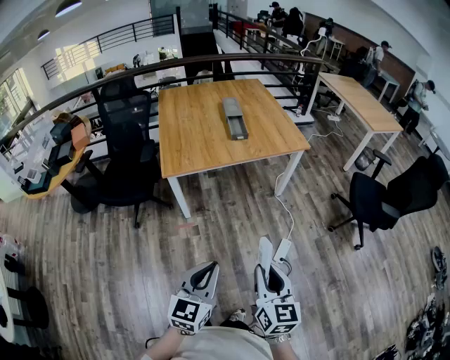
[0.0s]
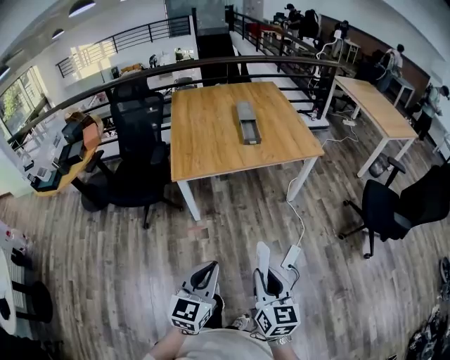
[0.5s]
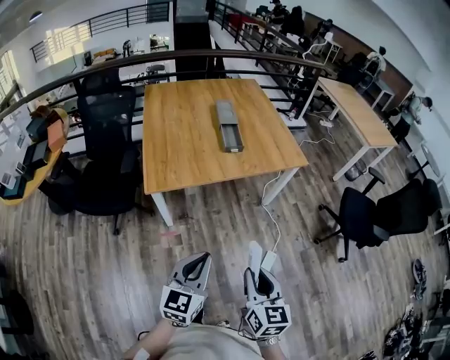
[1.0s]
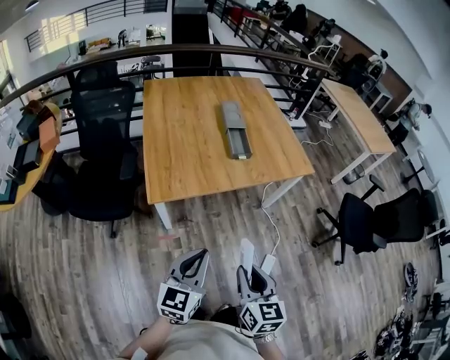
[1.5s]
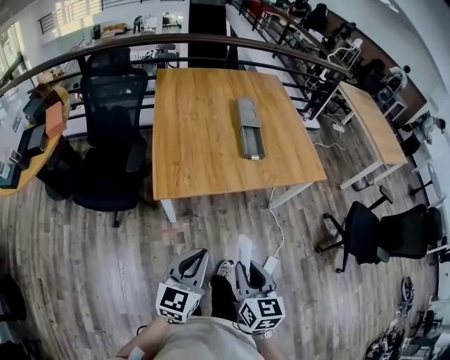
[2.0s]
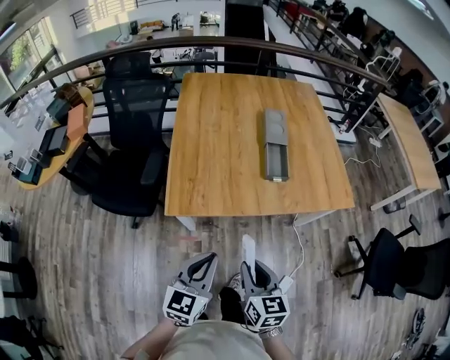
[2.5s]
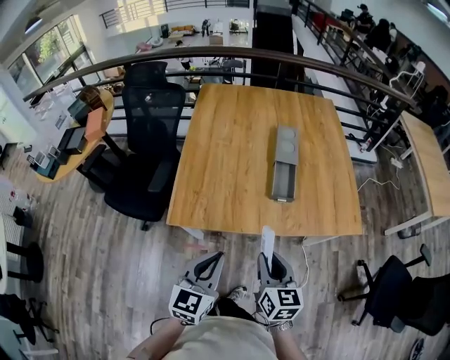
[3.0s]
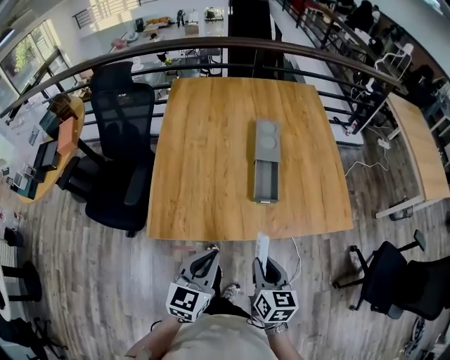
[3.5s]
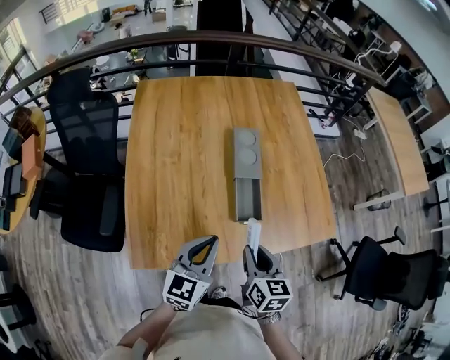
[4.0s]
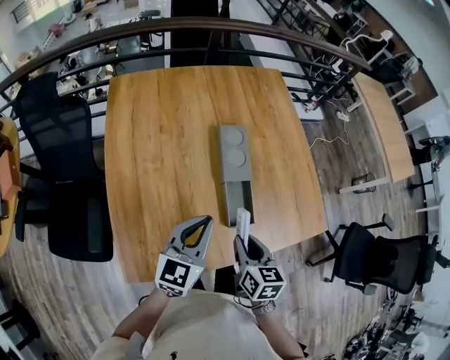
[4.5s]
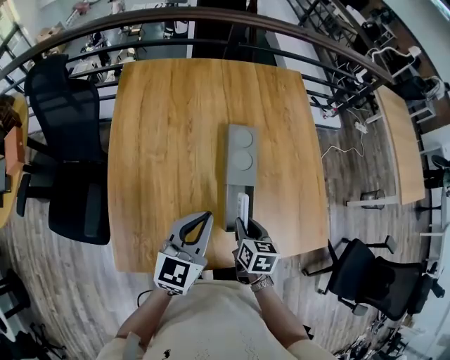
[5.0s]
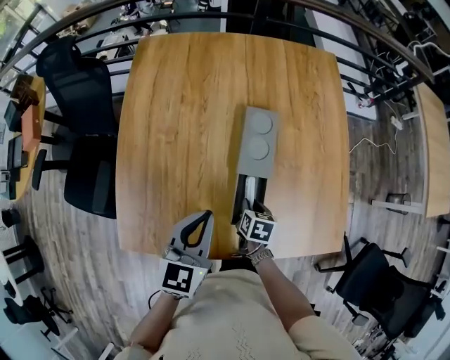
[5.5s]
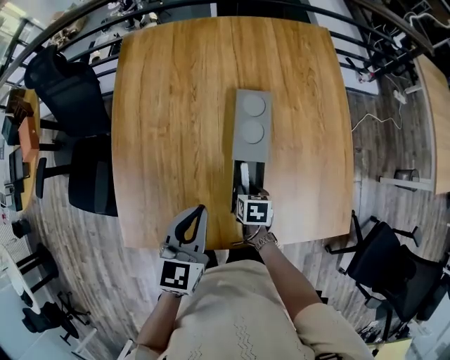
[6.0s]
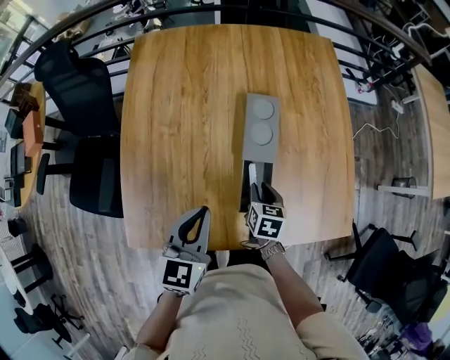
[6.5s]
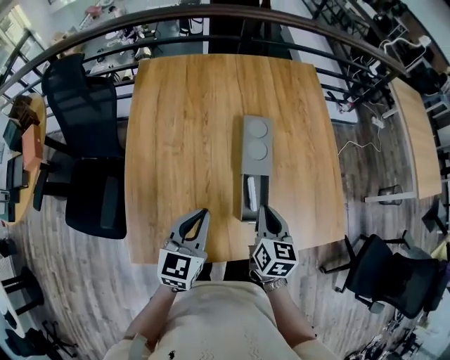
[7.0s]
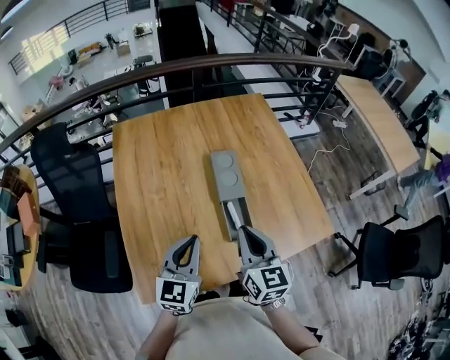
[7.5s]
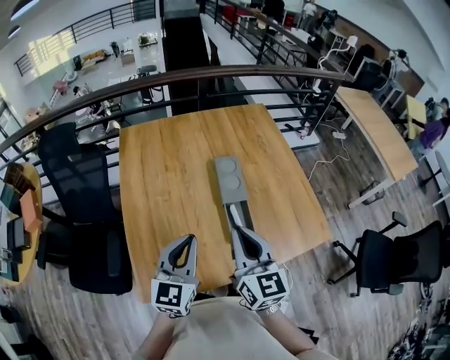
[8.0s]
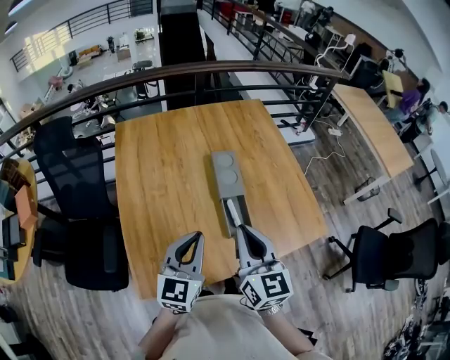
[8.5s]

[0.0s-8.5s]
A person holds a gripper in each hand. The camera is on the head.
0.0s to 2.0s: Both grippers travel together forward and to the left, roughly 40 cm.
2.0s to 4.0s: The pair of grippers is taken forward, roughly 50 cm.
4.0s to 6.5s: The right gripper shifts approximately 30 cm forward and downward. Meanwhile the left gripper travels forward by roughly 15 cm.
6.5s to 8.5s: The right gripper goes approximately 40 cm upward and backward, angles its fingers upward, by some 40 degrees, and closes its fingers, while the left gripper travels upward and backward by approximately 15 cm, and rotates approximately 20 degrees.

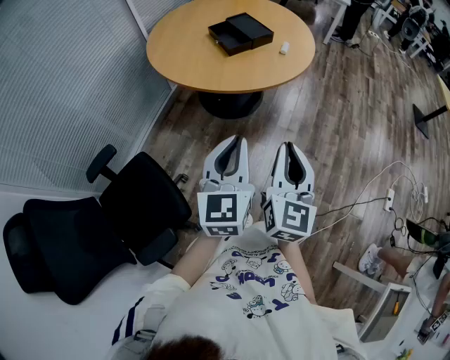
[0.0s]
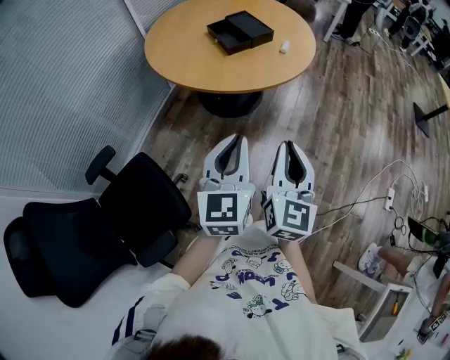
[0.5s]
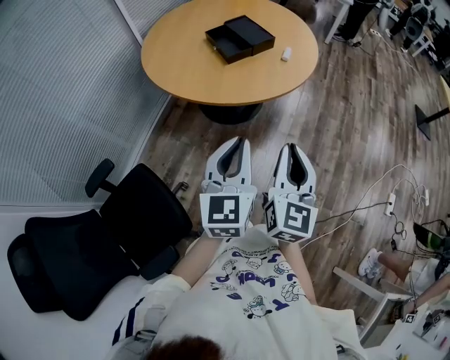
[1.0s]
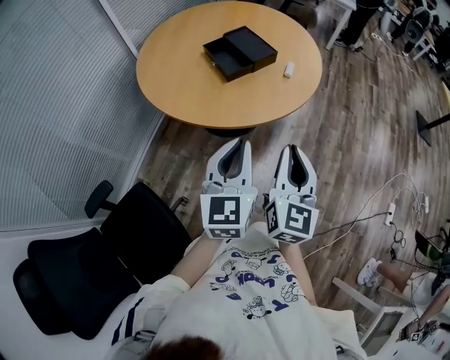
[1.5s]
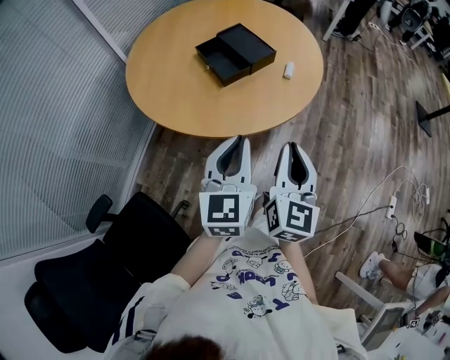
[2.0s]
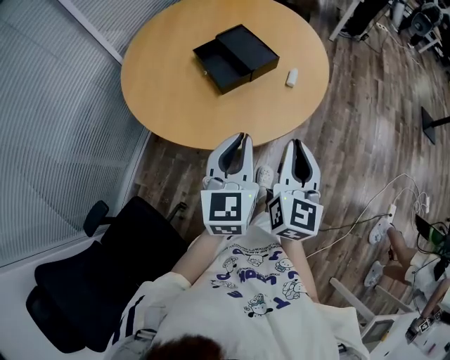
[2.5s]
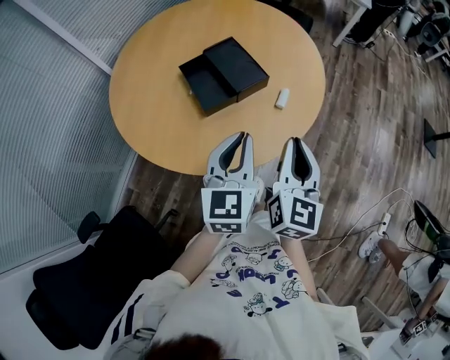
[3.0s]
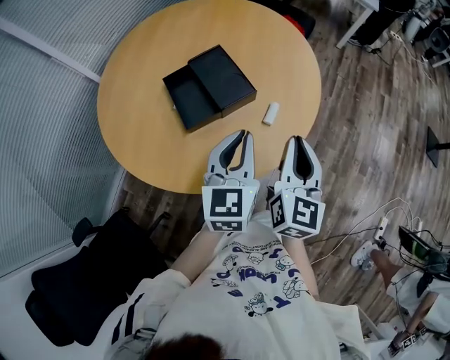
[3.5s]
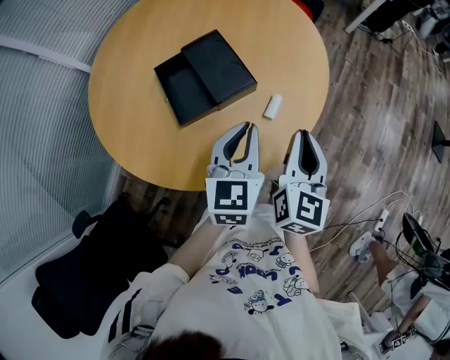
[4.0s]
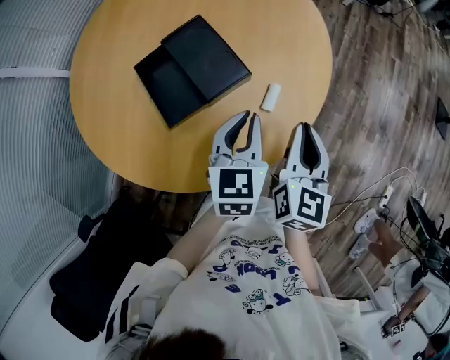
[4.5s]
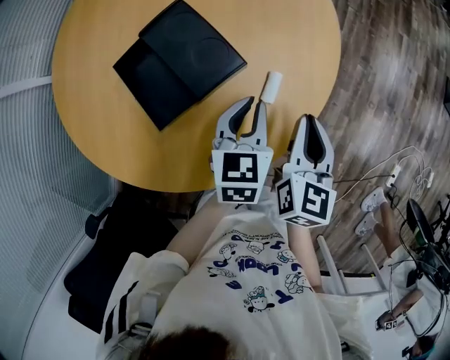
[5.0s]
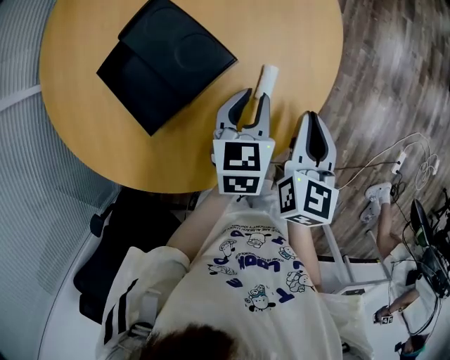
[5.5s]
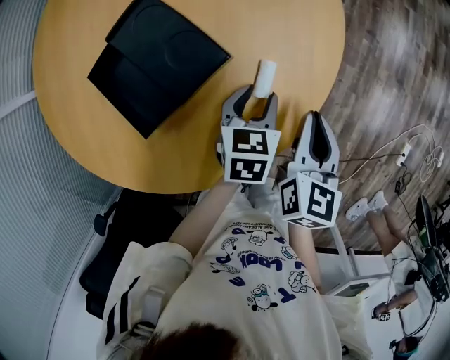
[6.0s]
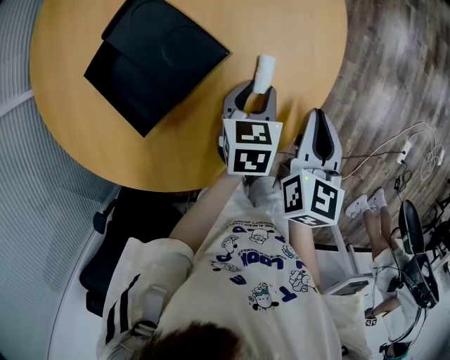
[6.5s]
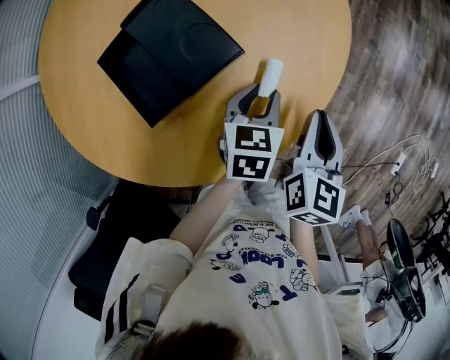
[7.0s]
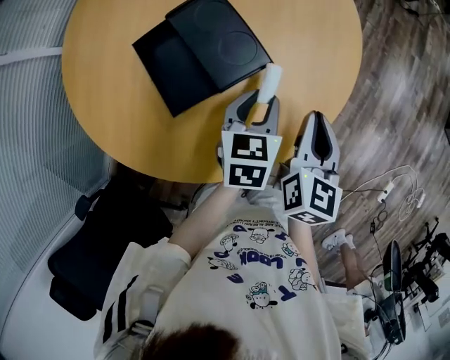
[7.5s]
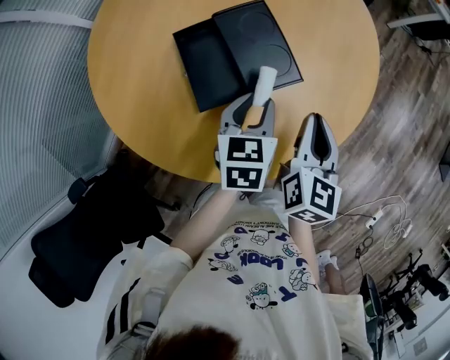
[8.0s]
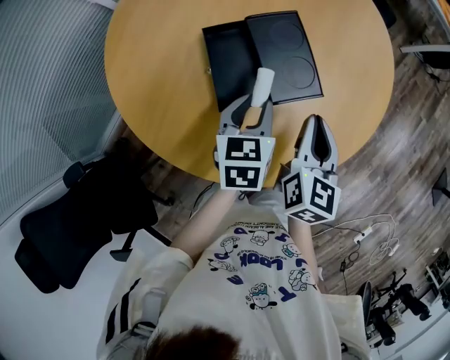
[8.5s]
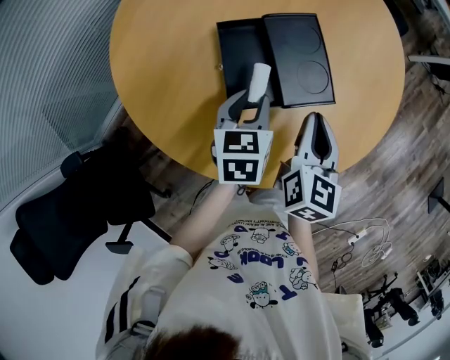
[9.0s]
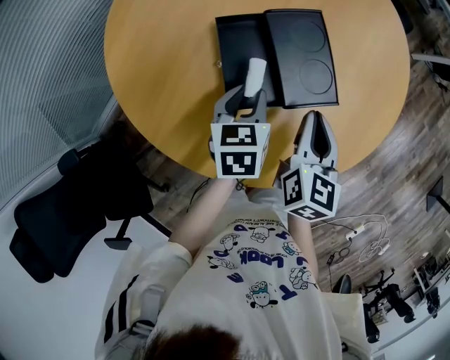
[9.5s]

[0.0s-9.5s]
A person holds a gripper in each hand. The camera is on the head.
0.0s to 2.0s: The grippers both shift forward by approximately 25 cm.
2.0s to 4.0s: The grippers both shift forward by roughly 30 cm.
4.0s to 5.5s: The right gripper heads downward, covering roughly 10 cm, while the left gripper goes roughly 20 cm downward and forward, and turns by approximately 20 degrees.
5.5s to 7.5s: The right gripper goes about 5 cm to the left; the left gripper goes downward and returns, roughly 5 cm each way.
7.5s to 9.5s: Both grippers travel together to the left, about 15 cm. The left gripper swivels about 30 degrees.

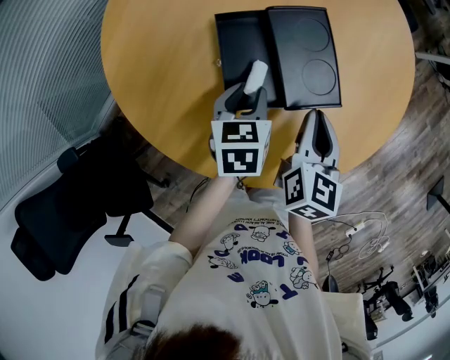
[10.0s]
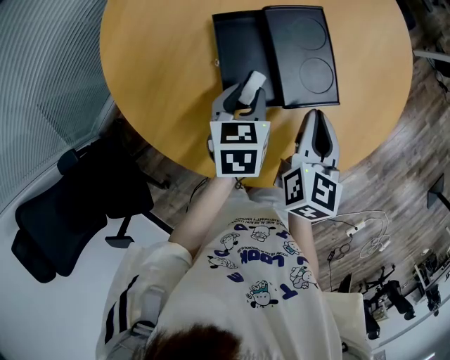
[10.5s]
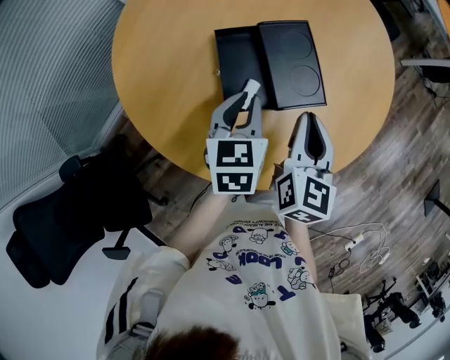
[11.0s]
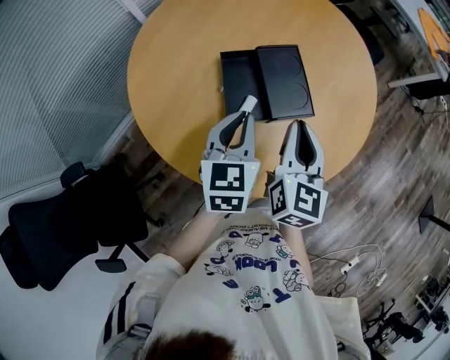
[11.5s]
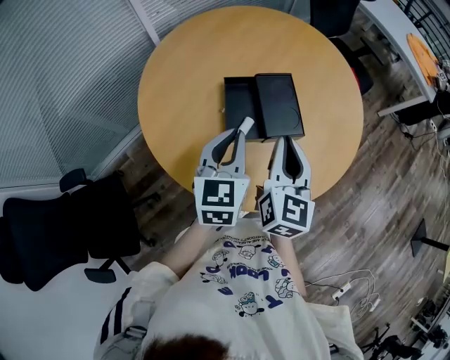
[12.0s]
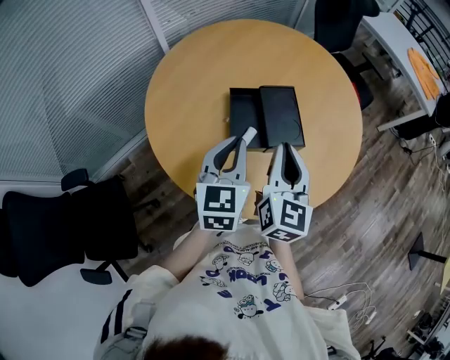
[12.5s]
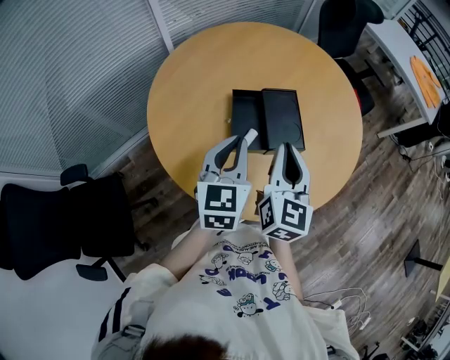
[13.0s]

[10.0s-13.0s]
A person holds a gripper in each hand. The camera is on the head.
10.0s to 11.5s: The two grippers go about 15 cm upward. The left gripper turns by about 20 degrees, and closes up.
11.5s to 13.0s: Both grippers travel together upward, roughly 5 cm.

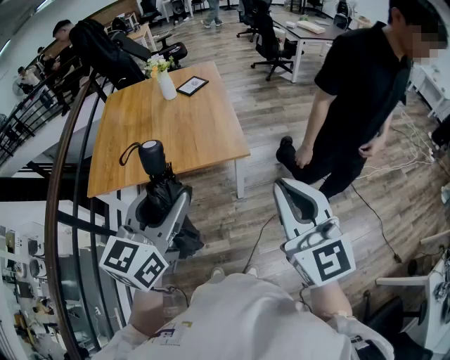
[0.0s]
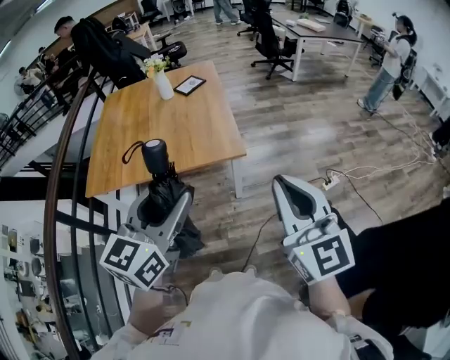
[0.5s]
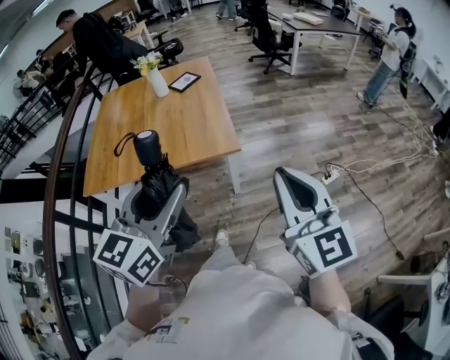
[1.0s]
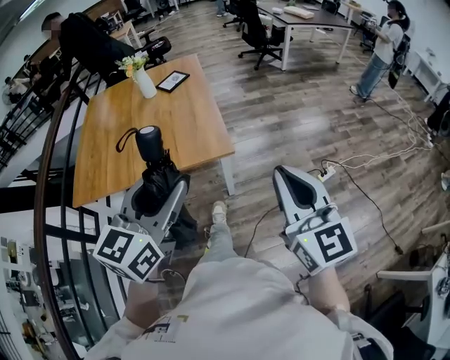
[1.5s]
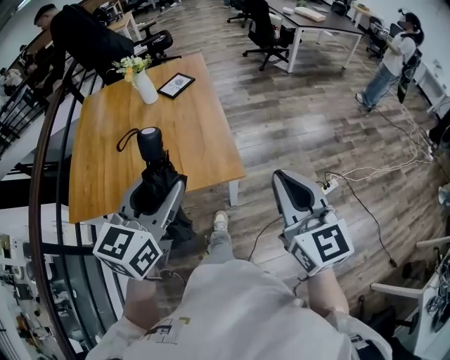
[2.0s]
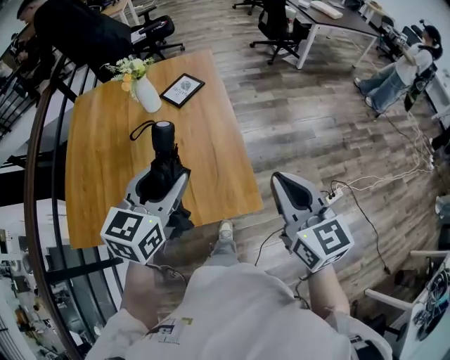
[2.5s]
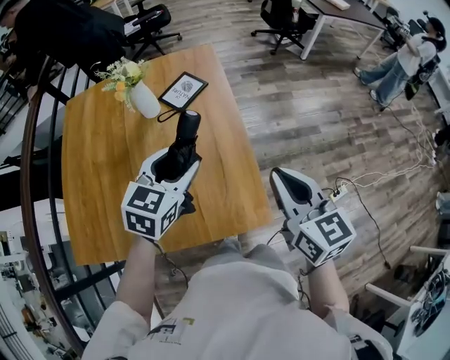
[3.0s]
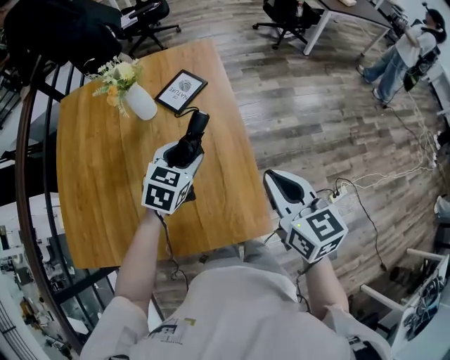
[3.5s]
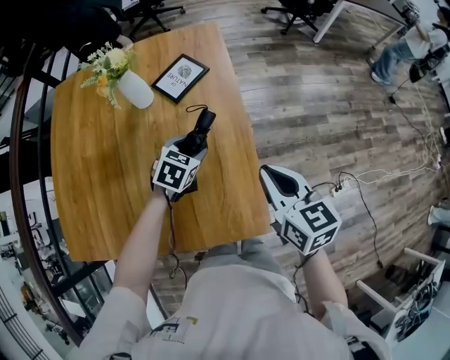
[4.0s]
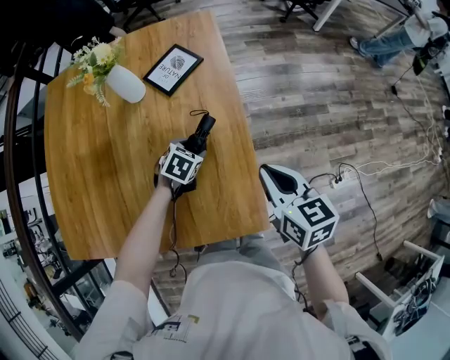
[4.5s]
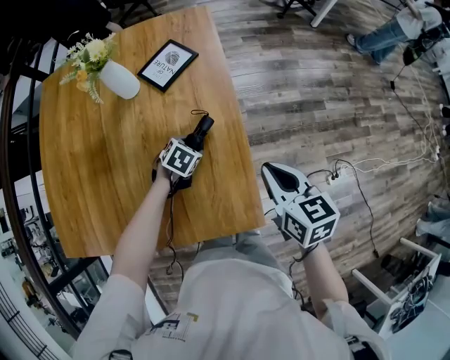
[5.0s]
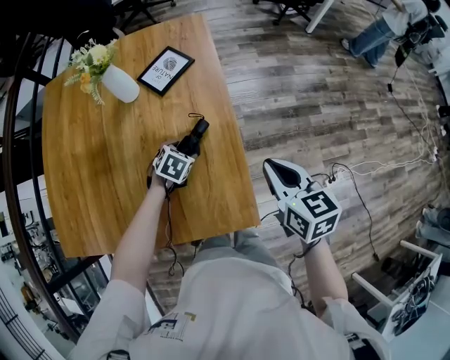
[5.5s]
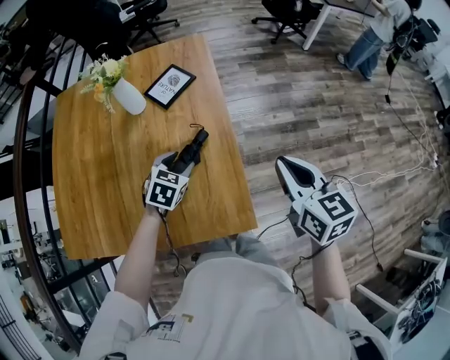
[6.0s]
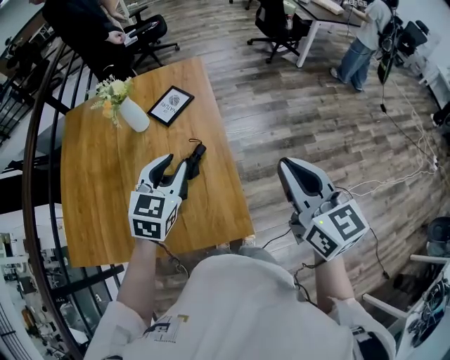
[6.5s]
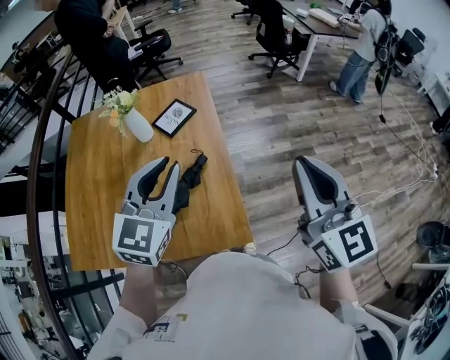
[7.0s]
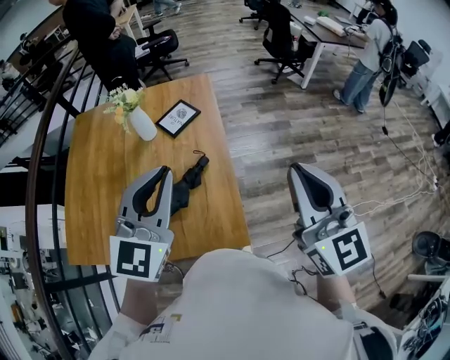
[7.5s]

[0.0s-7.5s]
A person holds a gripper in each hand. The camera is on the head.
0.0s to 2.0s: Both grippers move forward, about 25 cm.
2.0s to 4.0s: The two grippers travel together, forward, approximately 50 cm. The right gripper moves downward, about 20 cm, and swivels about 30 degrees. Meanwhile the left gripper goes roughly 35 cm downward, and tilts its fingers about 40 degrees downward.
4.0s to 5.5s: The right gripper heads to the right, covering approximately 5 cm. Meanwhile the left gripper moves downward, some 10 cm.
5.5s to 7.5s: The right gripper heads upward, covering approximately 30 cm, and tilts its fingers approximately 30 degrees upward; the left gripper heads upward, covering approximately 50 cm, tilts its fingers roughly 60 degrees upward, and closes up.
